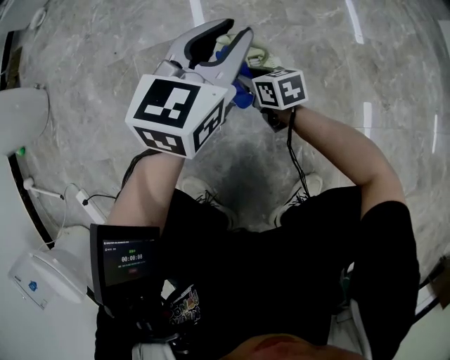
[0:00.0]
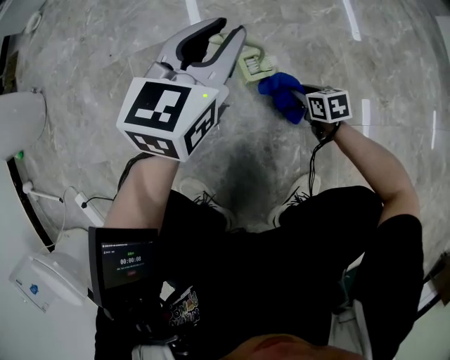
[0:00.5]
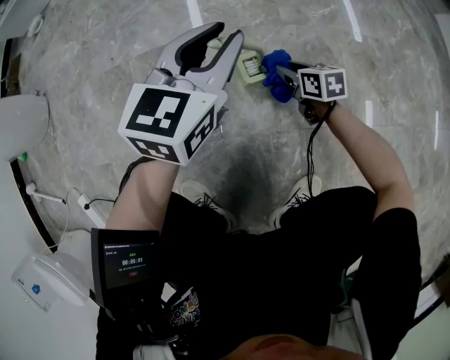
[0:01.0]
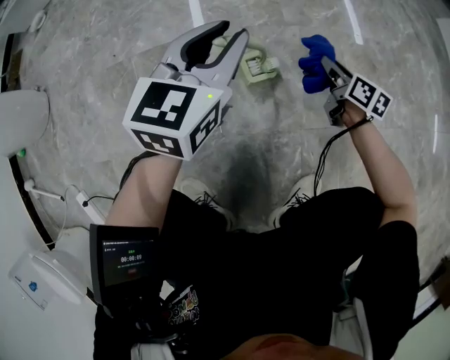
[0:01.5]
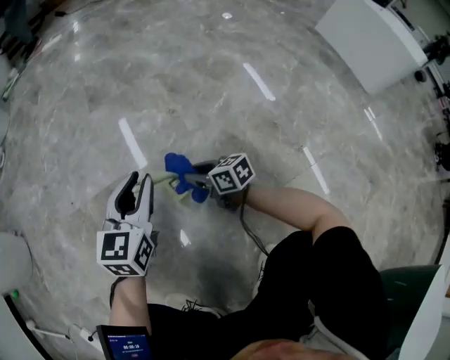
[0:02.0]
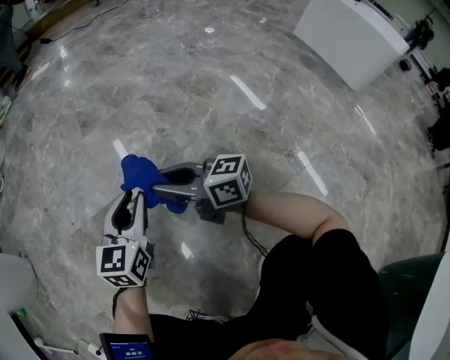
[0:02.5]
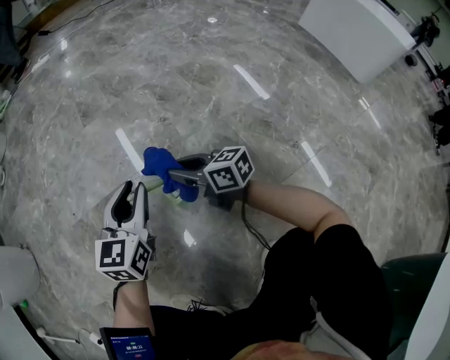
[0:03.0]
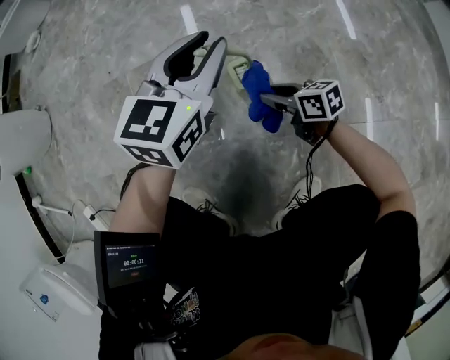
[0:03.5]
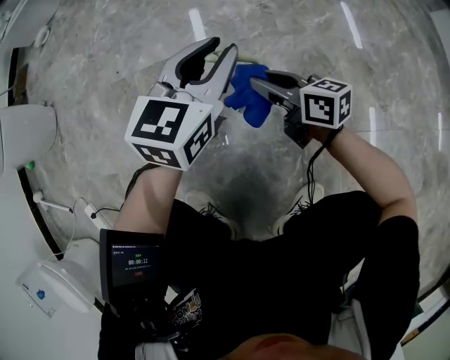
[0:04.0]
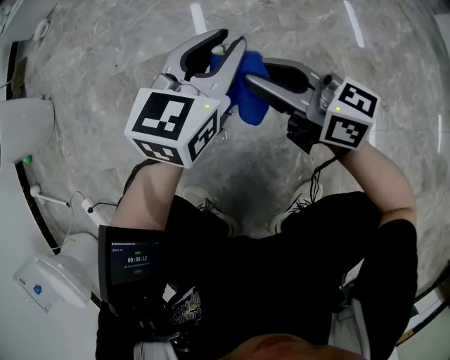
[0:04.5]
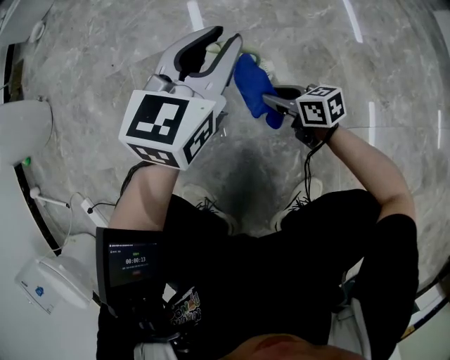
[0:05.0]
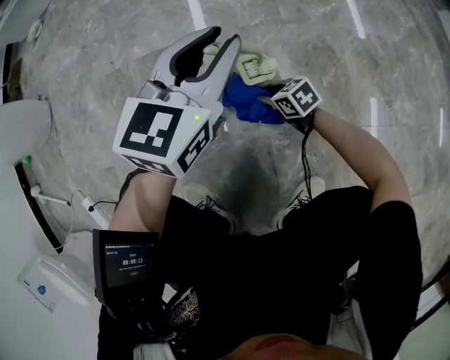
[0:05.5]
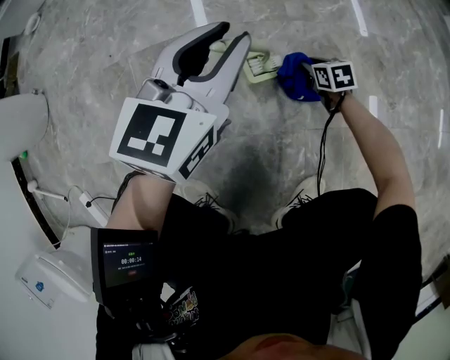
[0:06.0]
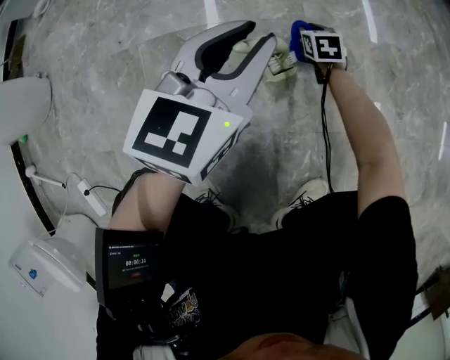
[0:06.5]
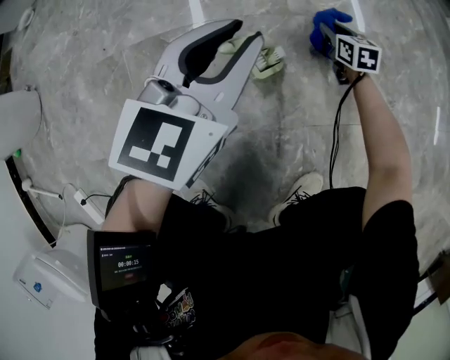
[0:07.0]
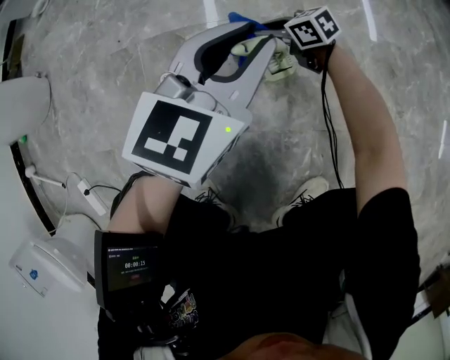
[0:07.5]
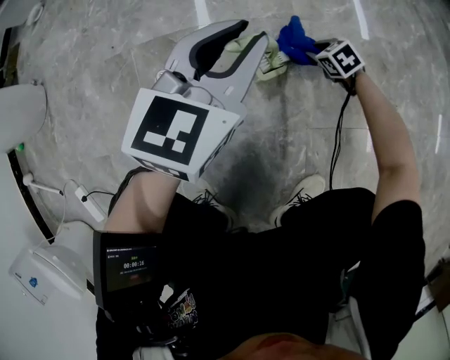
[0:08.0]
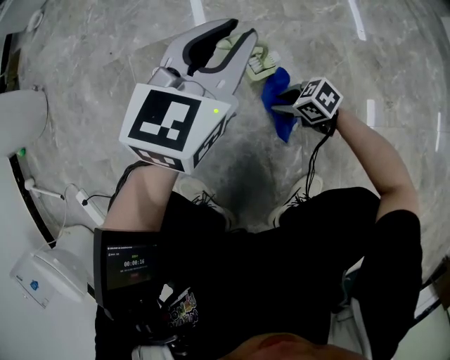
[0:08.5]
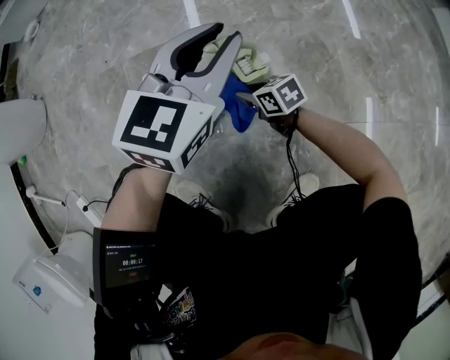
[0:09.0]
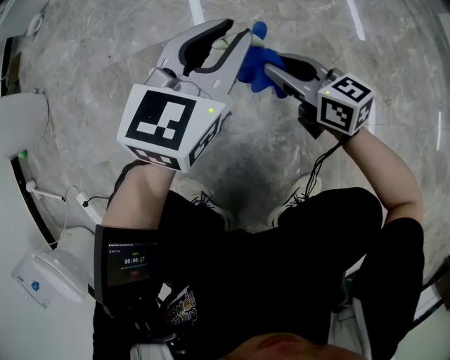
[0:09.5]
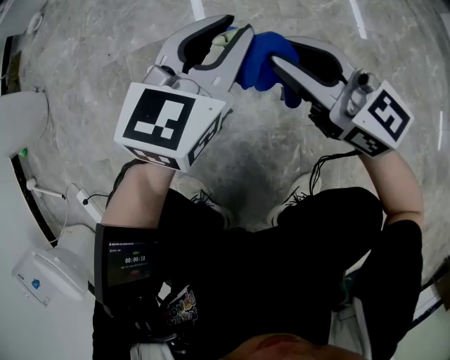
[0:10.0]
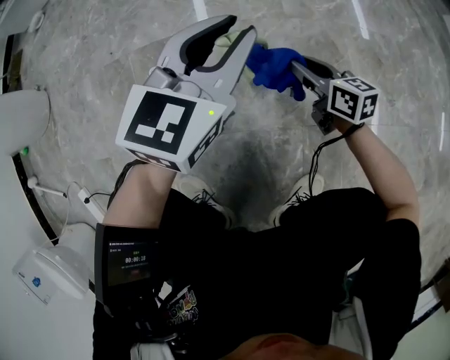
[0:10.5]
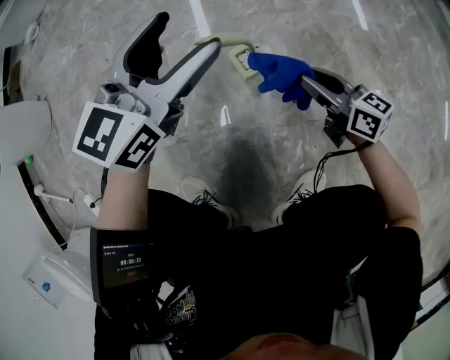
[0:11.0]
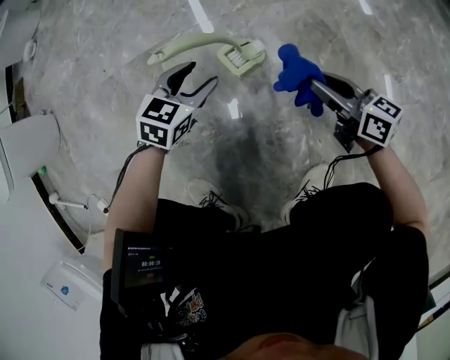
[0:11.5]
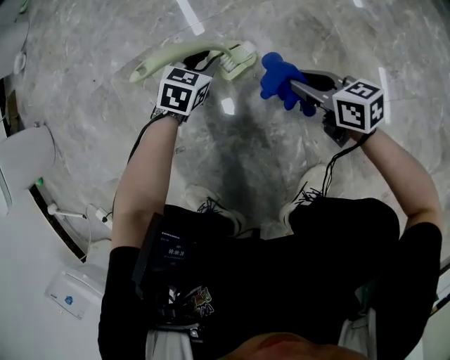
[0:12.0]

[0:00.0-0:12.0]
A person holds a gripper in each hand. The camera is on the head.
0.0 to 2.0 s: The right gripper moves left and right over roughly 25 cm, changing direction 3 times.
2.0 to 4.0 s: The right gripper moves up and down over roughly 25 cm, changing direction 2 times.
4.0 to 6.0 s: The right gripper is displaced downward and to the right by approximately 25 cm, and tilts its fingers about 40 degrees downward.
6.0 to 8.0 s: The right gripper travels upward and back again, roughly 10 cm each way, and swivels approximately 30 degrees.
8.0 to 10.0 s: The right gripper heads upward, covering approximately 30 cm, and angles its fingers upward, by some 60 degrees.
10.0 to 12.0 s: The right gripper moves downward and to the right, about 25 cm, and changes its angle by approximately 40 degrees, while the left gripper is displaced downward by about 30 cm, tips its fingers downward by approximately 30 degrees, and opens, then closes again.

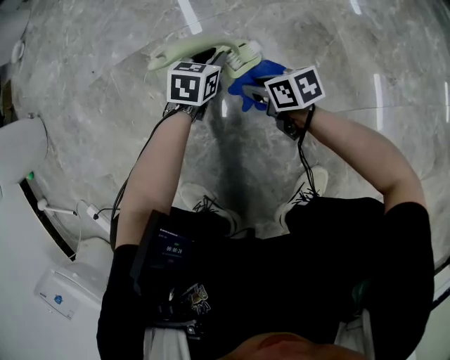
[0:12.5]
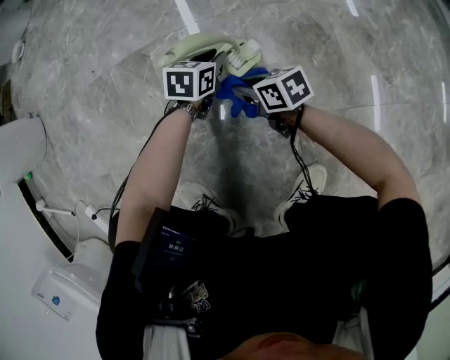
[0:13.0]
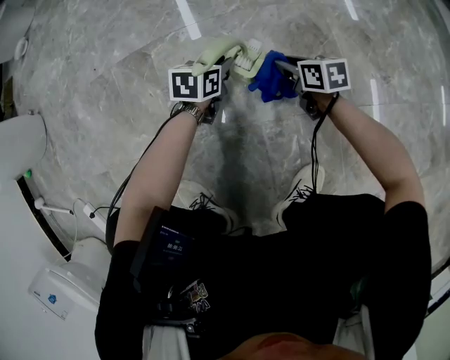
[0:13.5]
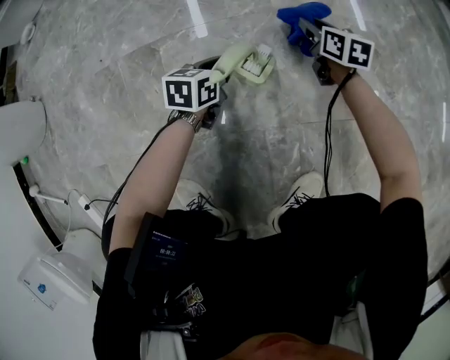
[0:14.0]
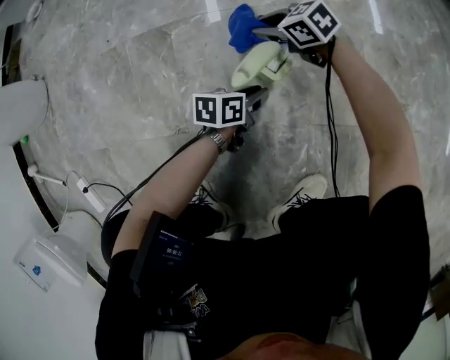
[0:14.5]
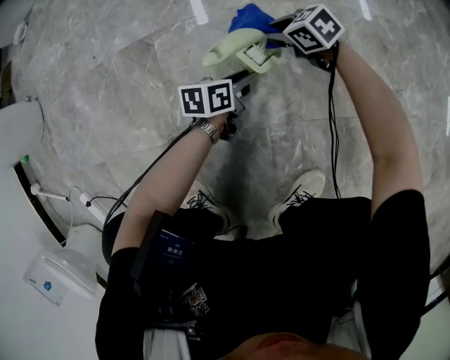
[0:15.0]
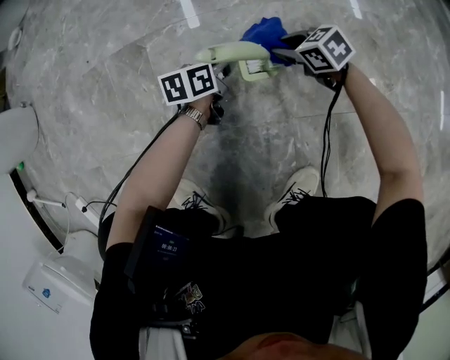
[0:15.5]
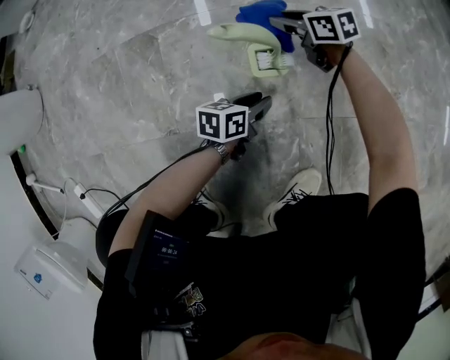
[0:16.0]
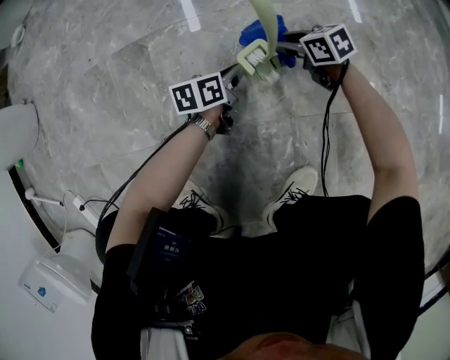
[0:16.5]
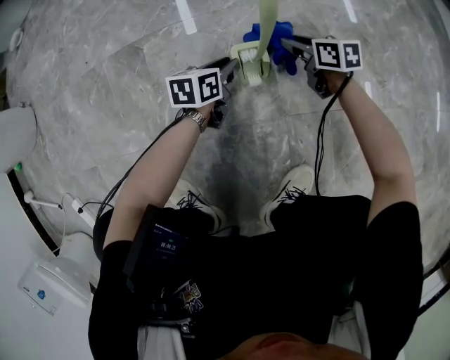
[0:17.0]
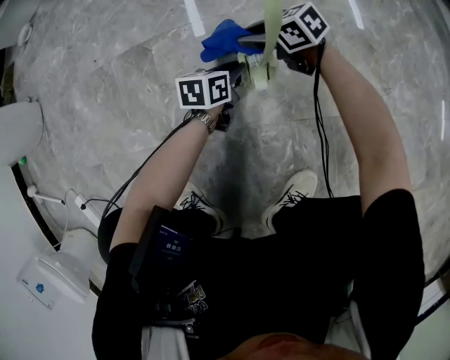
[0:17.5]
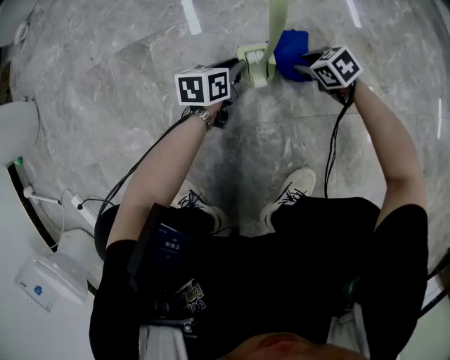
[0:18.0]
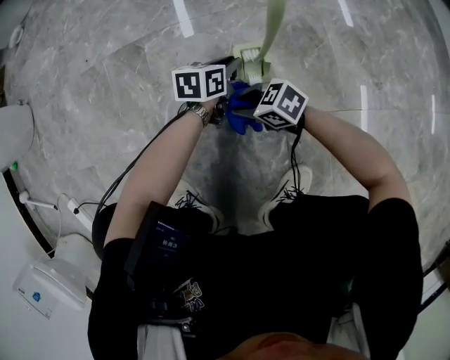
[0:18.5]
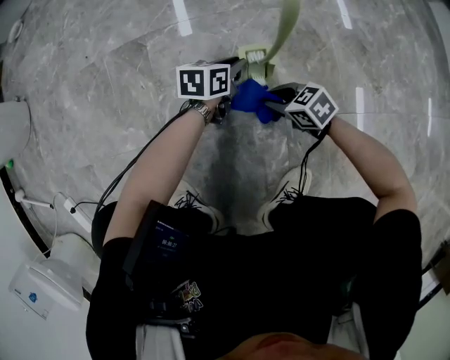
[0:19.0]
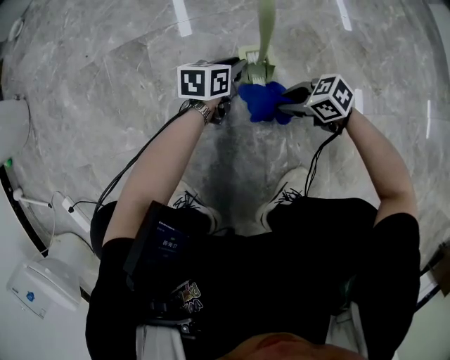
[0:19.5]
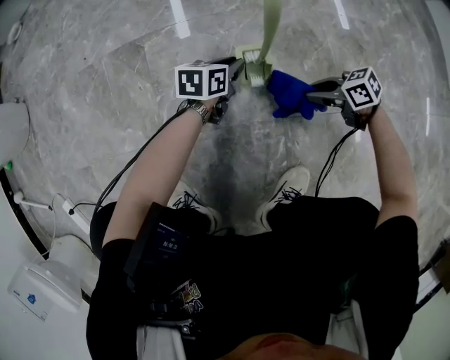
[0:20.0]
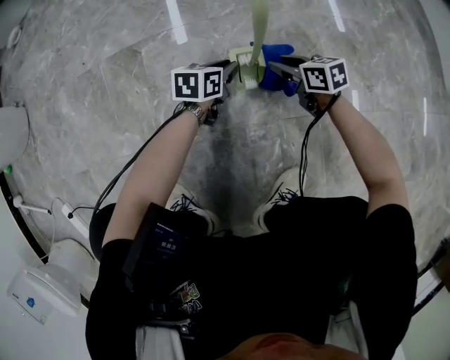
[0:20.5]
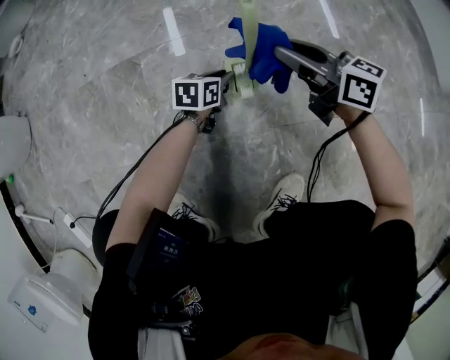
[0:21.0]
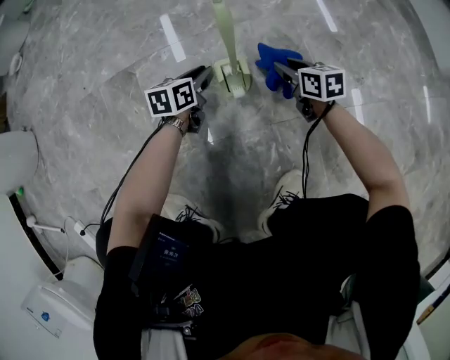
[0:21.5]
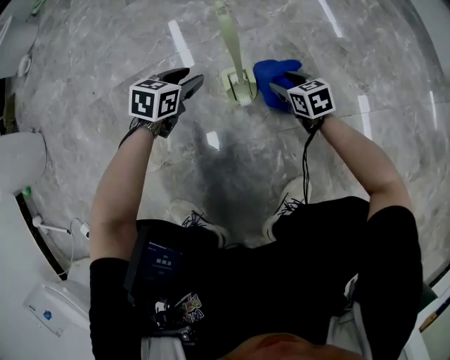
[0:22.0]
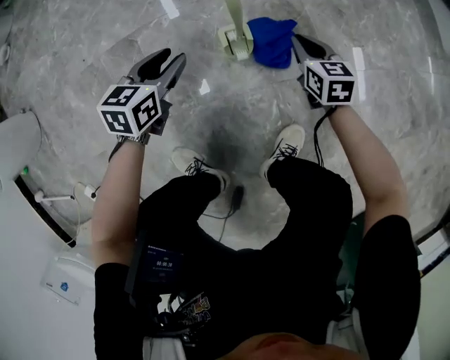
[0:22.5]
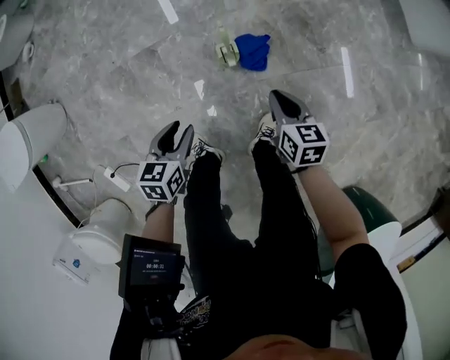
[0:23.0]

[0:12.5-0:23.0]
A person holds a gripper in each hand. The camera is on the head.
12.5 to 14.5 s: The left gripper shifts by some 15 cm, and turns by some 40 degrees. Meanwhile the right gripper turns by roughly 40 degrees.
14.5 to 16.5 s: The right gripper shifts by roughly 15 cm, and turns by roughly 20 degrees.
16.5 to 19.0 s: The right gripper travels upward and back again, approximately 5 cm each way.
19.0 to 21.0 s: The right gripper shifts about 25 cm upward, and points its fingers approximately 40 degrees further upward.
21.0 to 23.0 s: The left gripper travels upward and backward by some 50 cm; the right gripper heads upward and backward, covering about 25 cm, swivels some 40 degrees, and opens, then closes once more.

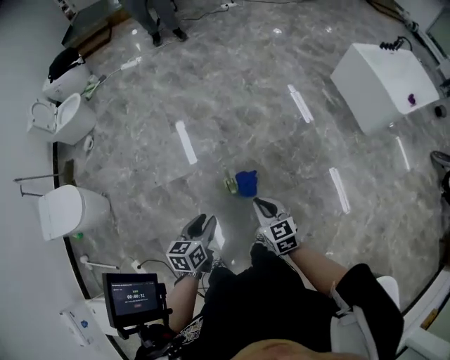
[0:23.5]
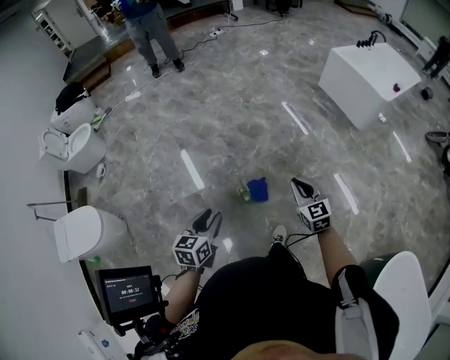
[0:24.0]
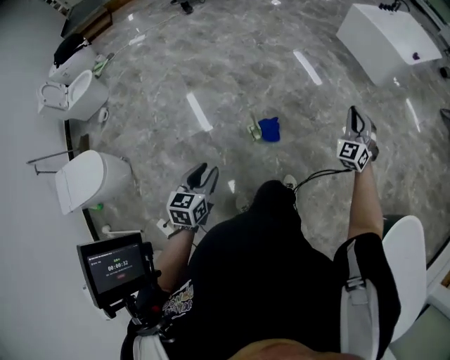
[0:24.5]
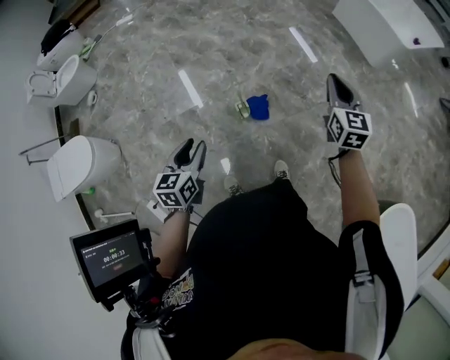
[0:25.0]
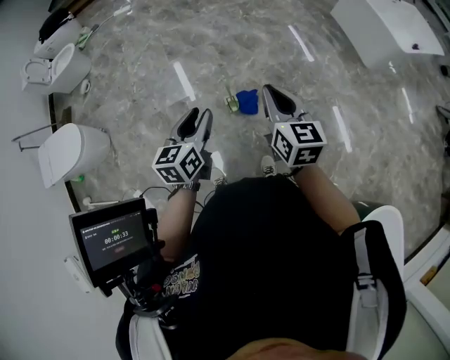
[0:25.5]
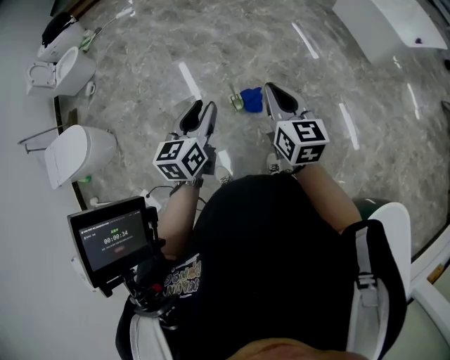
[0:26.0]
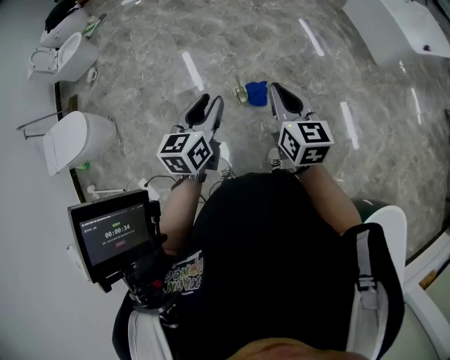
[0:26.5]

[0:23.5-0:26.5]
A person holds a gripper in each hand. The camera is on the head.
23.5 to 25.0 s: The left gripper moves about 15 cm, while the right gripper is displaced upward by approximately 15 cm, and changes its angle by approximately 30 degrees.
25.0 to 26.5 s: The left gripper goes some 10 cm upward; the right gripper goes roughly 20 cm to the left and backward, and changes its angle by some 20 degrees.

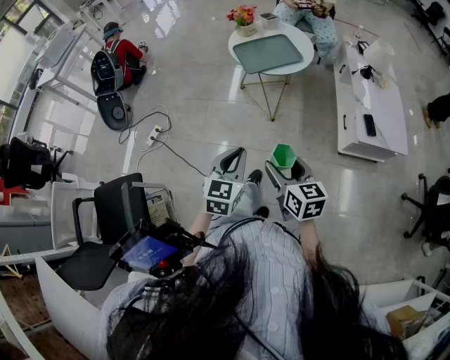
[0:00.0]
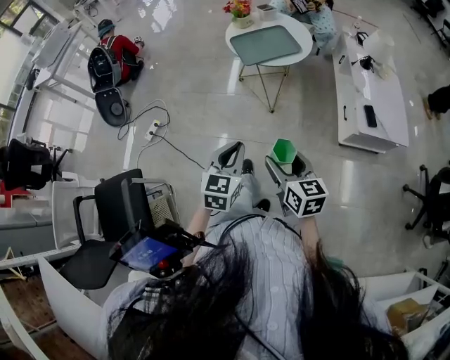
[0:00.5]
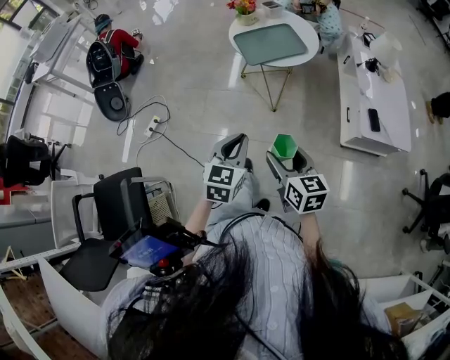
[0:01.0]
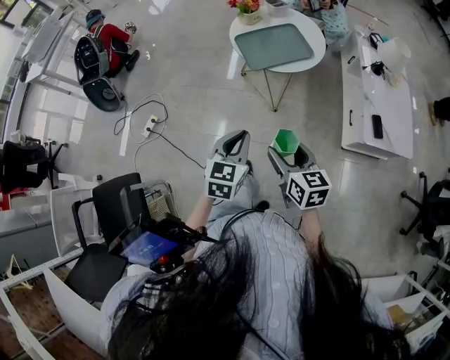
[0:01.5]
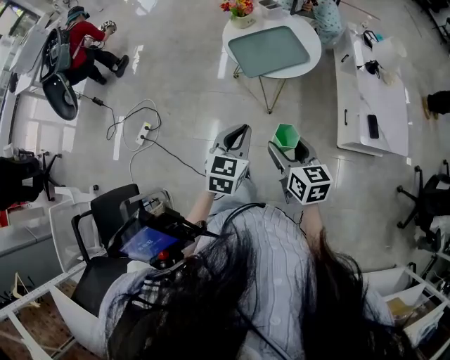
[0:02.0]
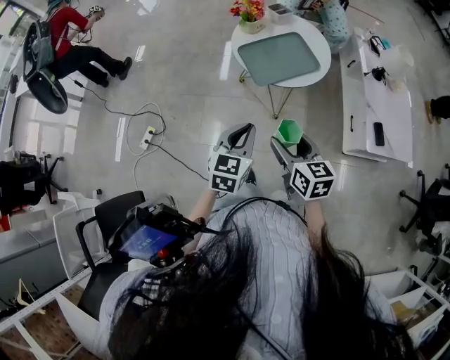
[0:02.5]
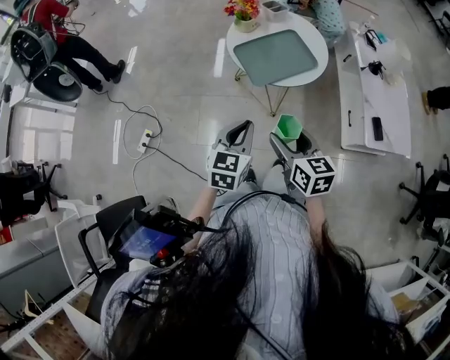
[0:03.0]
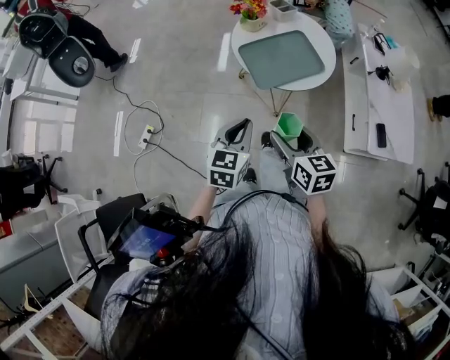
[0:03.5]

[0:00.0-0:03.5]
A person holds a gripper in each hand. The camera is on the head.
0.0 to 2.0 s: Both grippers move forward, approximately 20 cm.
2.0 to 3.5 s: Both grippers move forward, about 10 cm.
